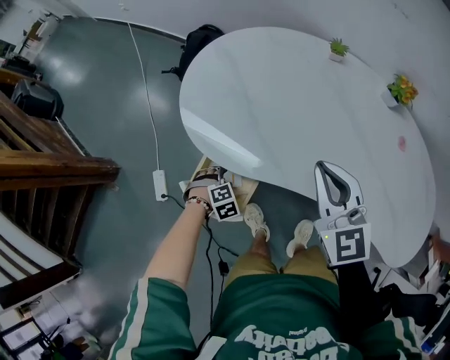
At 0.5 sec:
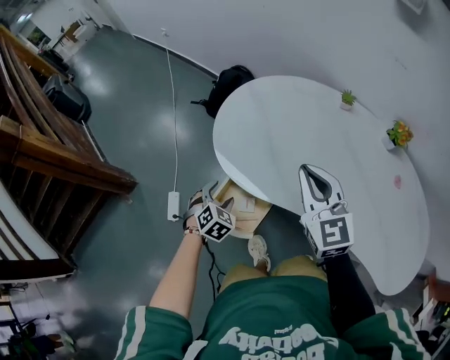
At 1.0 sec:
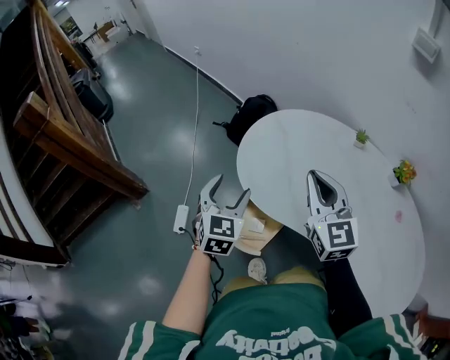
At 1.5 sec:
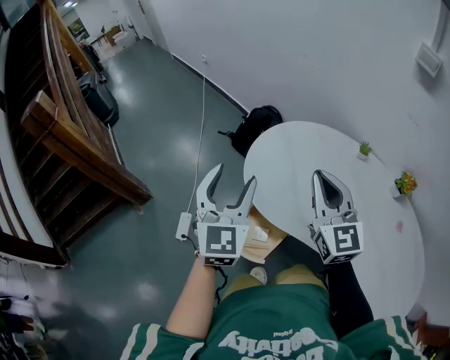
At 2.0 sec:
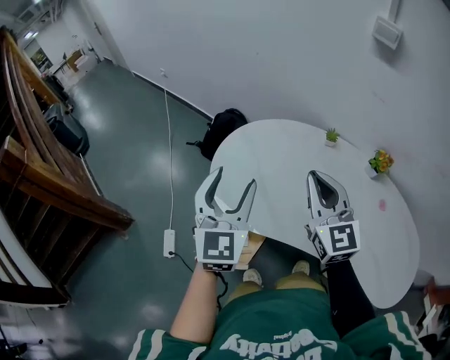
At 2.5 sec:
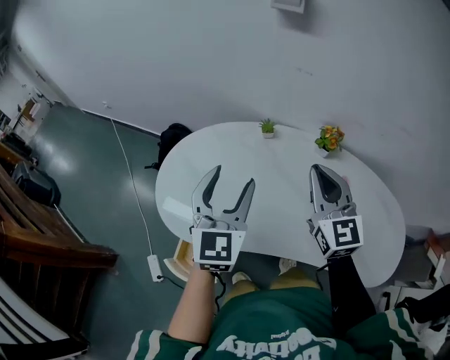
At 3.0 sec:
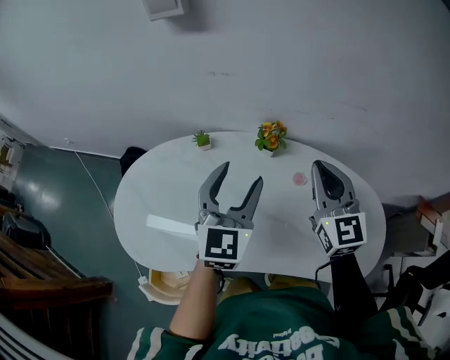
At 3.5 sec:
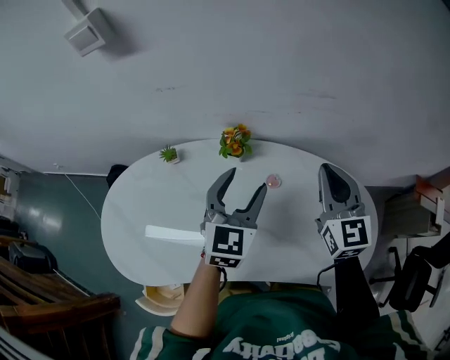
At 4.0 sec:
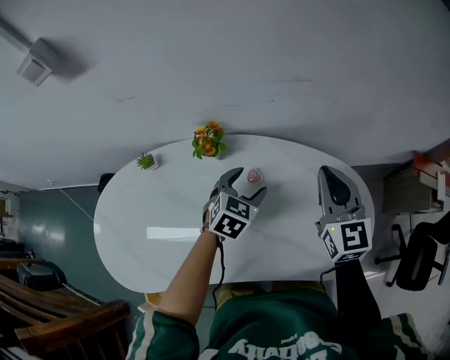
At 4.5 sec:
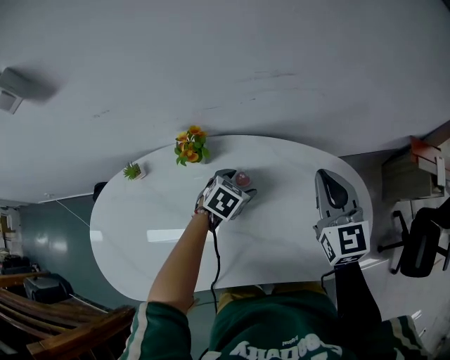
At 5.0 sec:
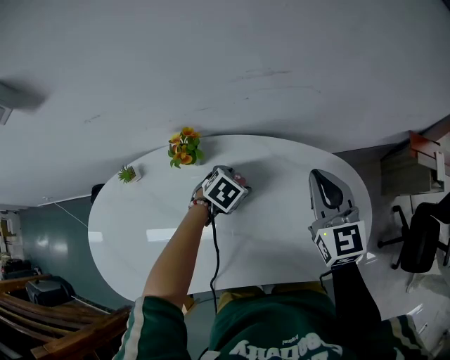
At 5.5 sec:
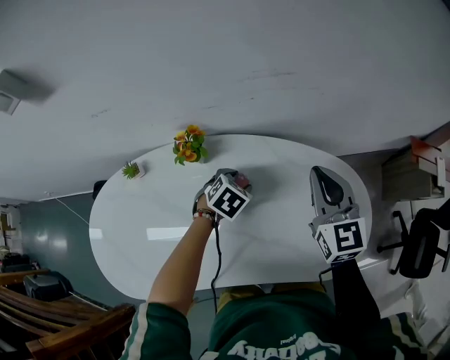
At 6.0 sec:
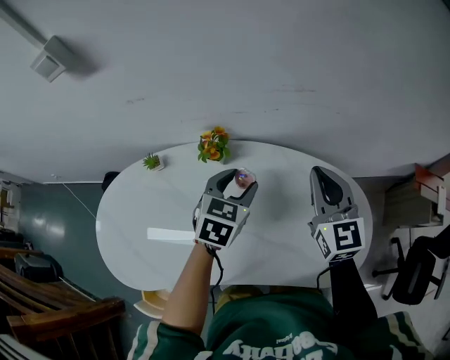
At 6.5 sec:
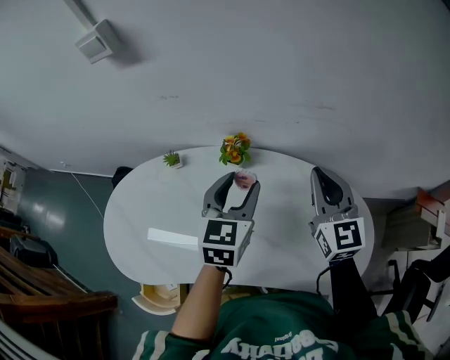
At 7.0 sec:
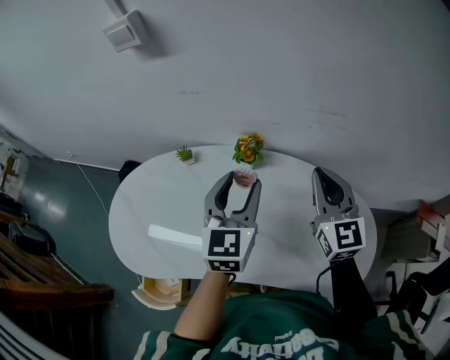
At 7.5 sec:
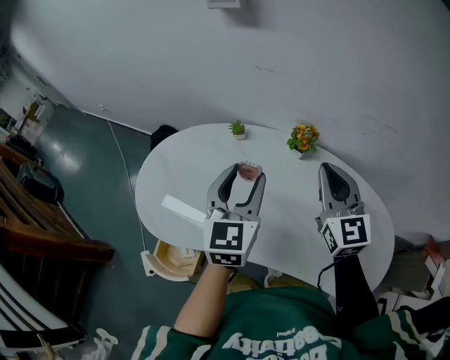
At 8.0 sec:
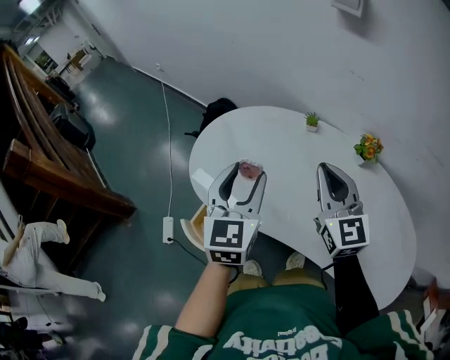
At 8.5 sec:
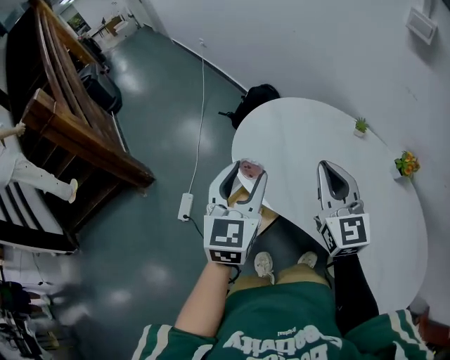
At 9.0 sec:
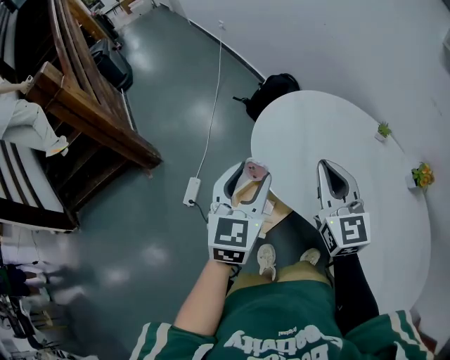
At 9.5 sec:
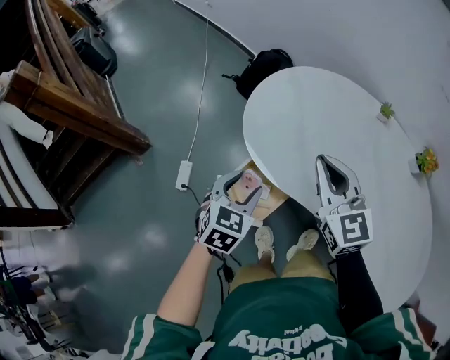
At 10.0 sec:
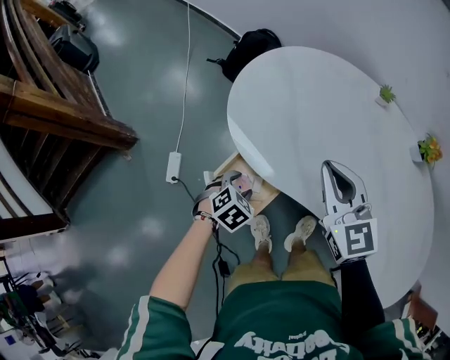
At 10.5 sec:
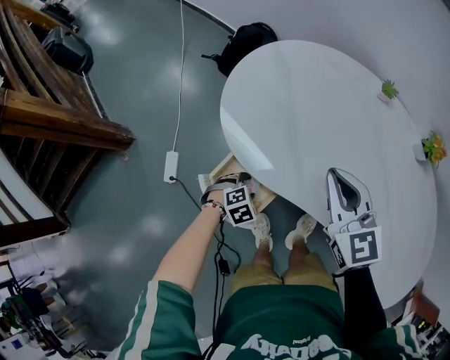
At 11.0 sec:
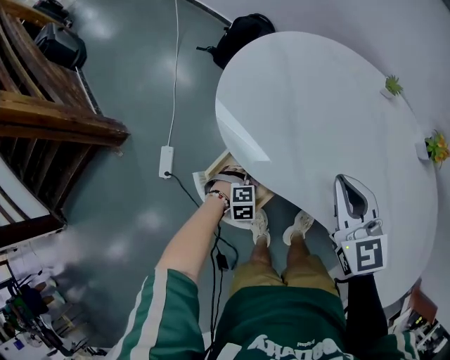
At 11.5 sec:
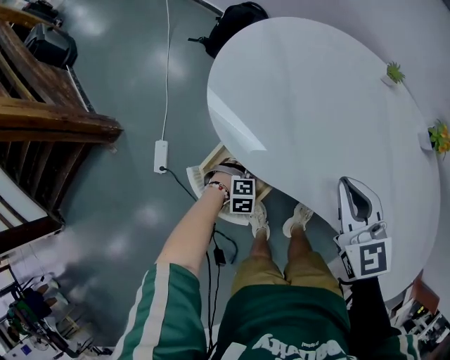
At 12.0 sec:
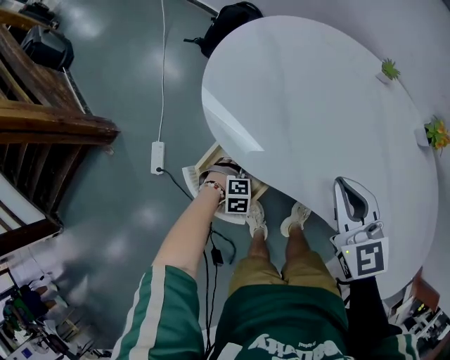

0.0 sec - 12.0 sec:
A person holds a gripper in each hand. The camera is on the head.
0.0 sec - 2.0 sec: The left gripper travels upward by some 50 cm, and tips its fingers upward by approximately 70 degrees. Meanwhile the right gripper travels upward by roughly 15 cm.
2.0 sec - 4.0 sec: The two grippers travel together, roughly 60 cm. The right gripper changes its angle by some 50 degrees. Meanwhile the left gripper tips its fingers downward by about 40 degrees.
4.0 sec - 6.0 sec: The left gripper heads upward, covering about 10 cm.
6.0 sec - 8.0 sec: The pair of grippers is taken some 50 cm. The right gripper turns by roughly 40 degrees, while the left gripper turns by about 60 degrees.
8.0 sec - 10.0 sec: The right gripper heads to the left and downward, covering about 25 cm, and changes its angle by approximately 20 degrees, while the left gripper travels downward and to the left by some 40 cm, and points its fingers some 50 degrees further downward.
10.0 sec - 12.0 sec: The right gripper is displaced downward by approximately 5 cm. Meanwhile the left gripper is displaced downward by approximately 15 cm, and rolls clockwise, seen from behind, by approximately 40 degrees.

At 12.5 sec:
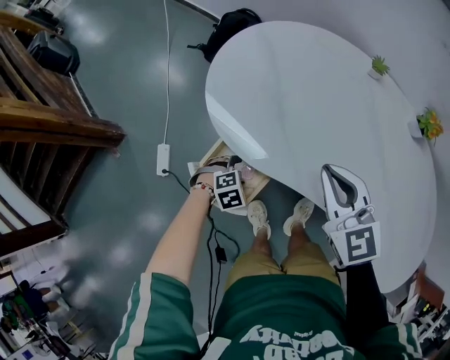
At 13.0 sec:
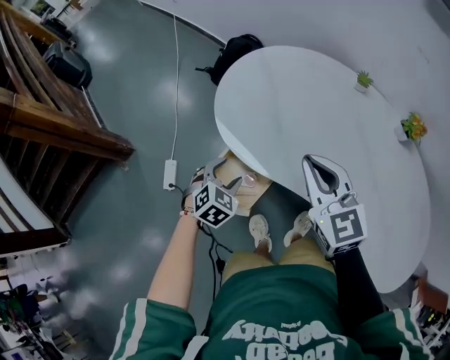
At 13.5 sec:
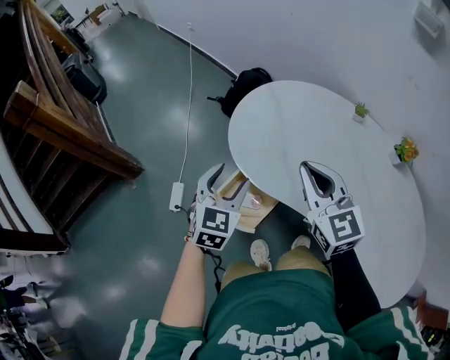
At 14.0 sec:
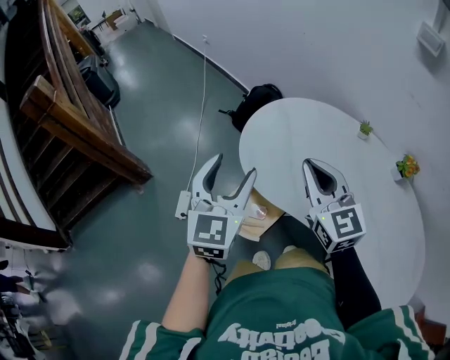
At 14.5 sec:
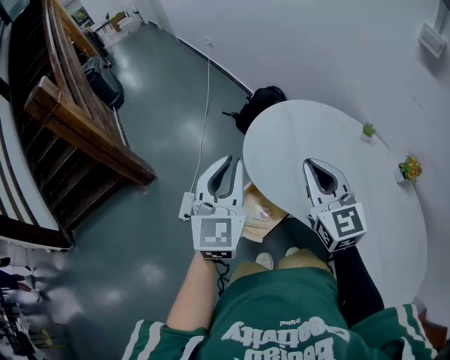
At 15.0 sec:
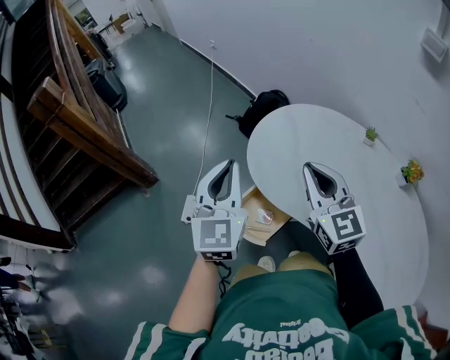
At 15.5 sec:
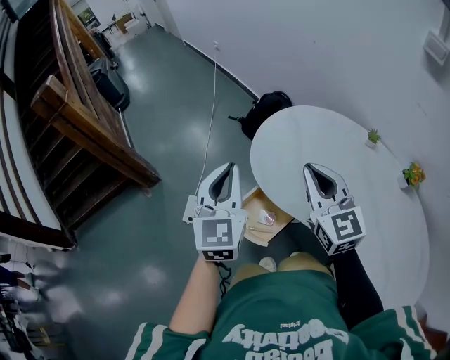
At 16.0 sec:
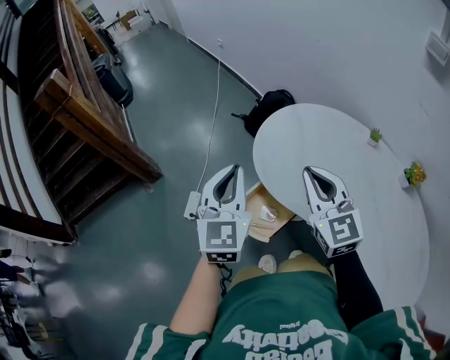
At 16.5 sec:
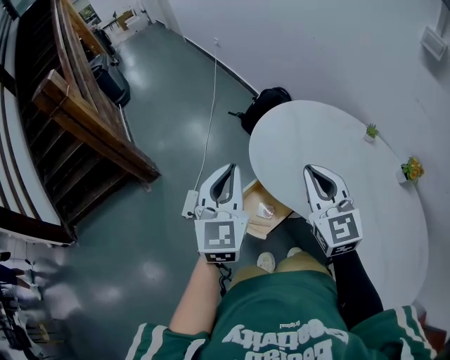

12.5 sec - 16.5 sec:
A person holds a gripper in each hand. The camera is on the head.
12.5 sec - 14.5 sec: The left gripper is displaced upward by roughly 50 cm, angles its fingers upward, by about 70 degrees, and closes its fingers, while the right gripper shifts approximately 15 cm upward, and swivels about 20 degrees.
14.5 sec - 16.5 sec: The grippers stay close to where they were, moving slightly.

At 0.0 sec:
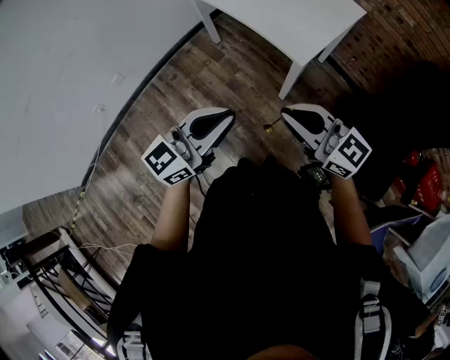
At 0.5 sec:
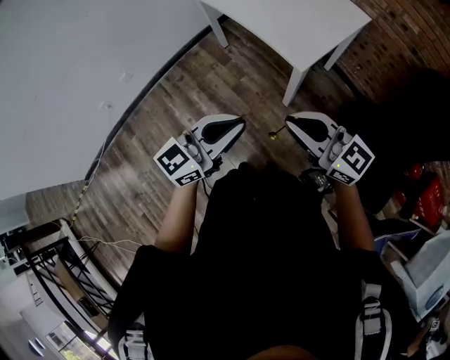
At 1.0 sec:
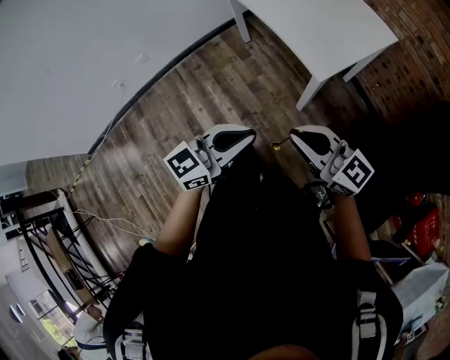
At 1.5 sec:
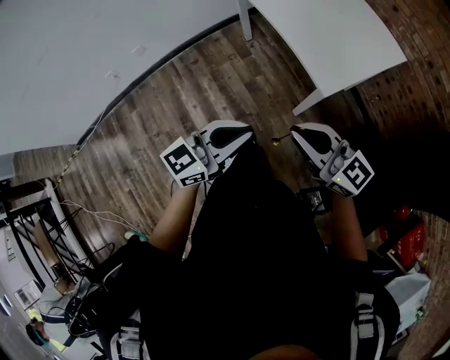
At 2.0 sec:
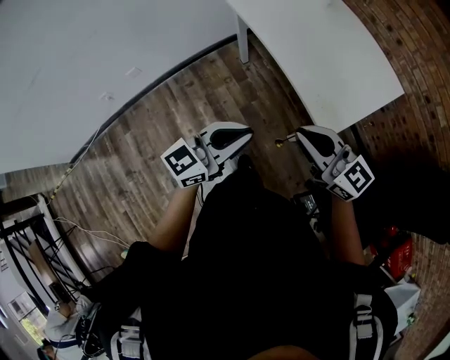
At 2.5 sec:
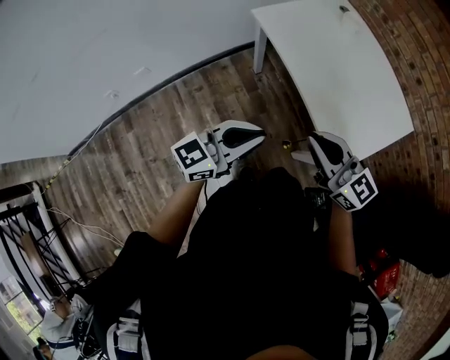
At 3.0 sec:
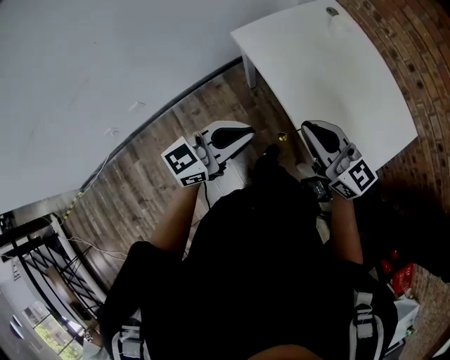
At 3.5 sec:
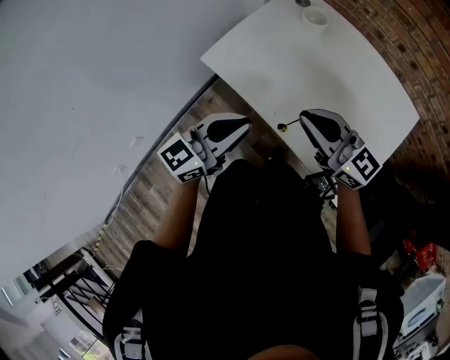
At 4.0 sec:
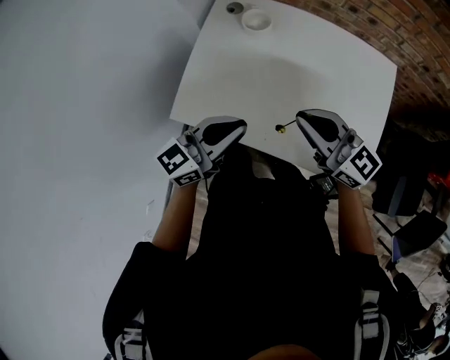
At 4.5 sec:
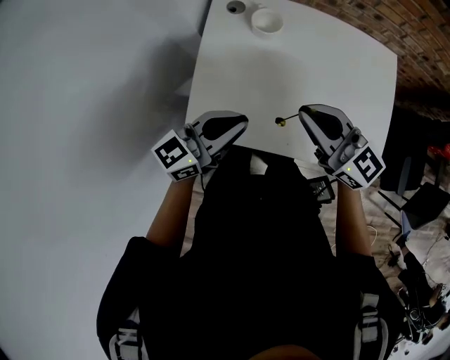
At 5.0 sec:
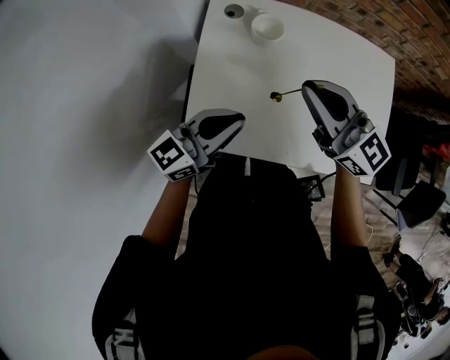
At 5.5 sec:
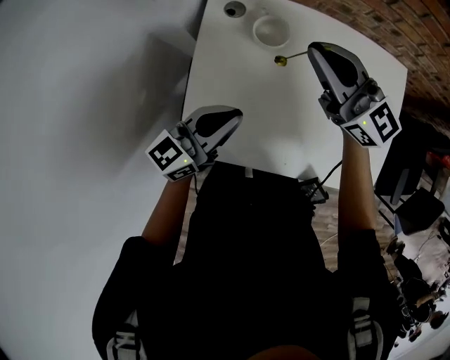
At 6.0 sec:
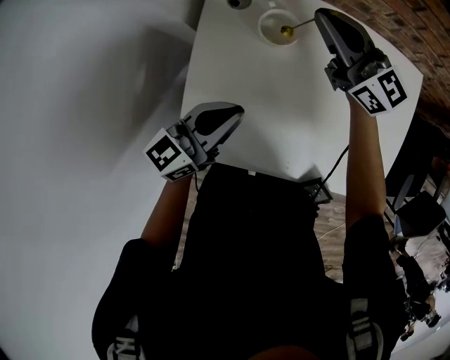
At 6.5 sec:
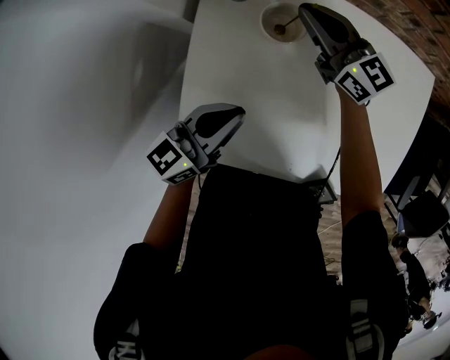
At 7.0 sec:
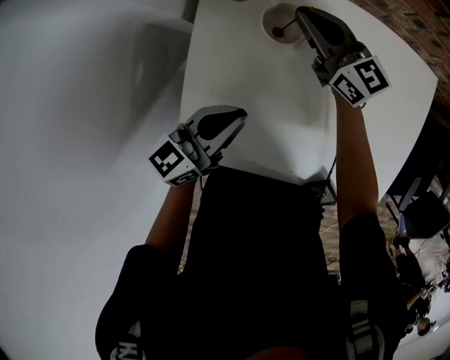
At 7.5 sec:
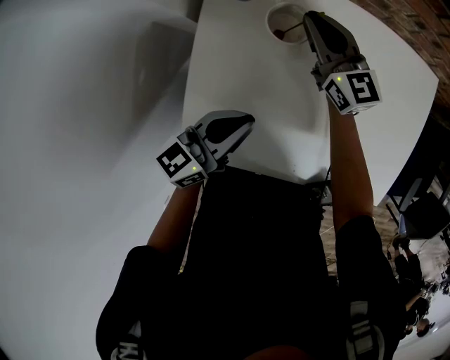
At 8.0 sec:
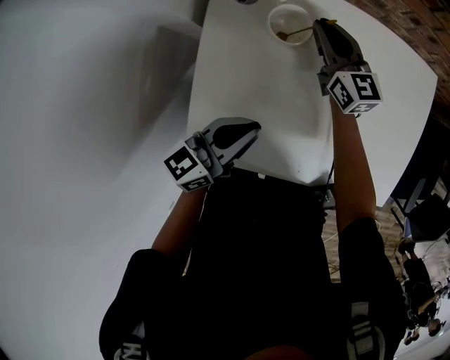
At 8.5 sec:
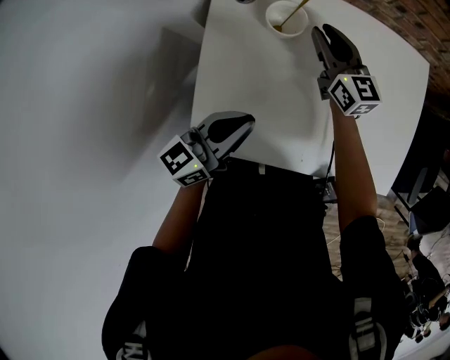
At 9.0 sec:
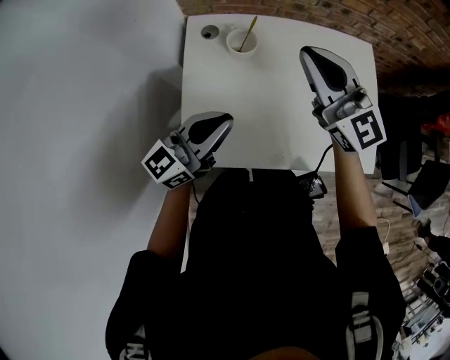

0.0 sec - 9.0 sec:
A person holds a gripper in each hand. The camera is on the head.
0.0 sec - 2.0 sec: The grippers both shift forward by roughly 20 cm.
2.0 sec - 4.5 sec: The pair of grippers is taken roughly 60 cm. The right gripper turns by about 50 degrees. The left gripper rotates about 50 degrees.
4.5 sec - 7.0 sec: The left gripper is displaced forward and downward by approximately 20 cm; the right gripper travels forward and downward by some 35 cm.
7.0 sec - 9.0 sec: The left gripper moves upward and backward, approximately 15 cm, and changes its angle by some 20 degrees; the right gripper is displaced upward and backward by approximately 30 cm, swivels roughly 30 degrees, and opens, then closes once more.

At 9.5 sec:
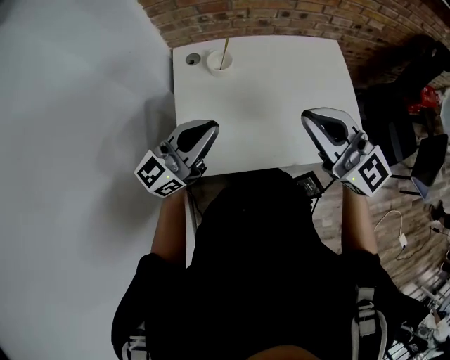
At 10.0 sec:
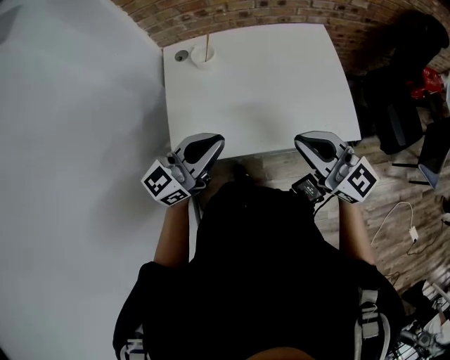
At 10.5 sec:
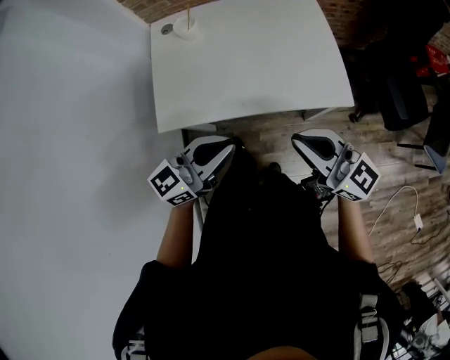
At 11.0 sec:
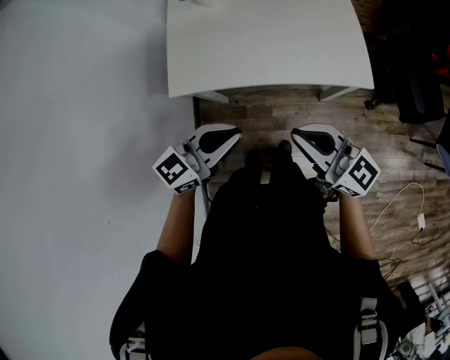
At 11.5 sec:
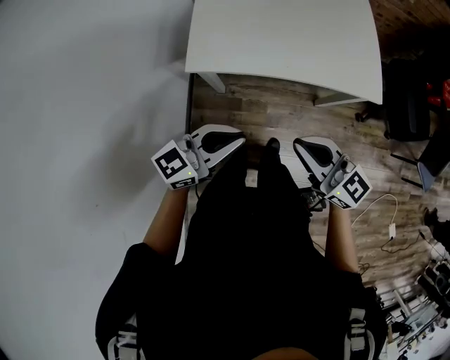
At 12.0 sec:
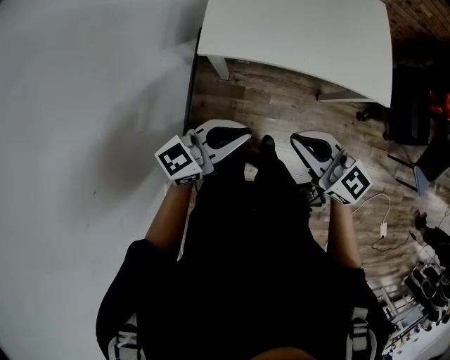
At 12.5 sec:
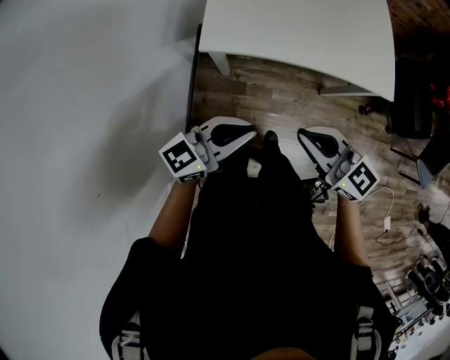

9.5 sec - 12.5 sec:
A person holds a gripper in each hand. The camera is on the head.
9.5 sec - 11.0 sec: The left gripper travels backward and to the right by about 30 cm, and swivels roughly 20 degrees. Meanwhile the right gripper goes about 30 cm backward, downward and to the right, and rotates about 30 degrees.
11.0 sec - 12.5 sec: The right gripper heads to the left, covering approximately 15 cm, while the left gripper is displaced to the left and backward by some 15 cm.
